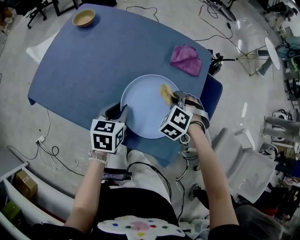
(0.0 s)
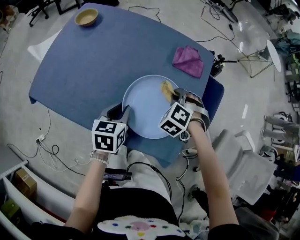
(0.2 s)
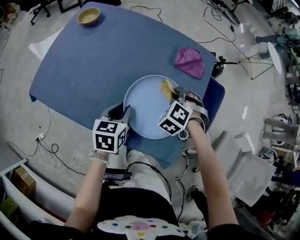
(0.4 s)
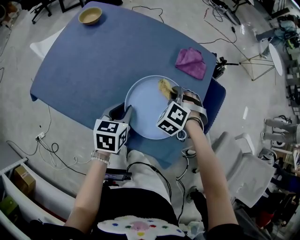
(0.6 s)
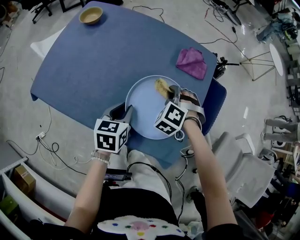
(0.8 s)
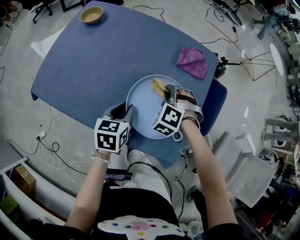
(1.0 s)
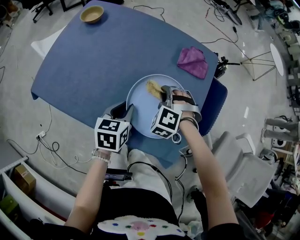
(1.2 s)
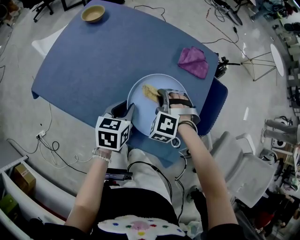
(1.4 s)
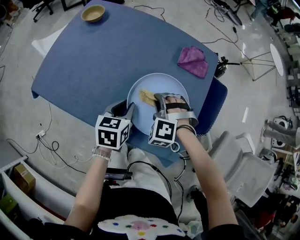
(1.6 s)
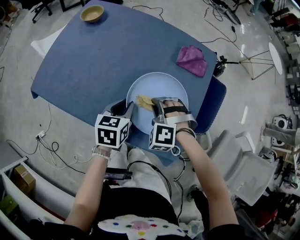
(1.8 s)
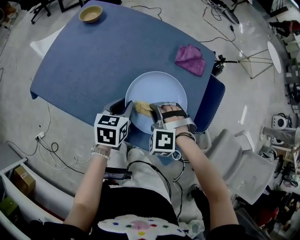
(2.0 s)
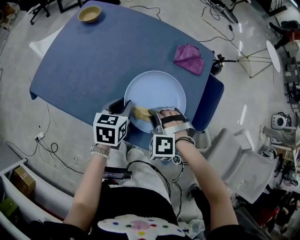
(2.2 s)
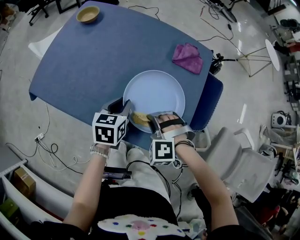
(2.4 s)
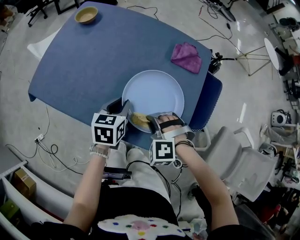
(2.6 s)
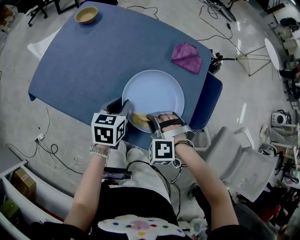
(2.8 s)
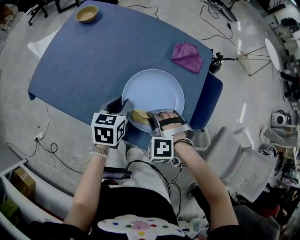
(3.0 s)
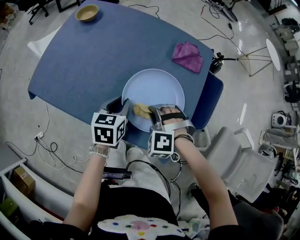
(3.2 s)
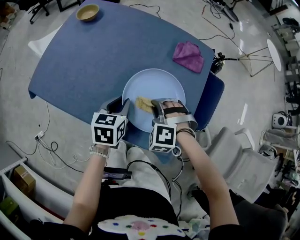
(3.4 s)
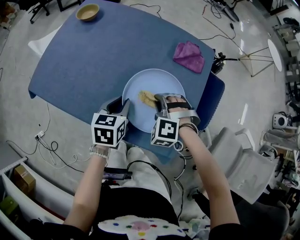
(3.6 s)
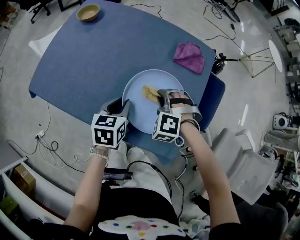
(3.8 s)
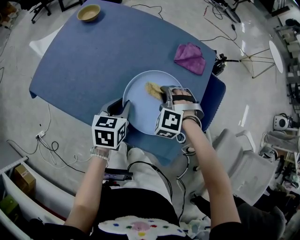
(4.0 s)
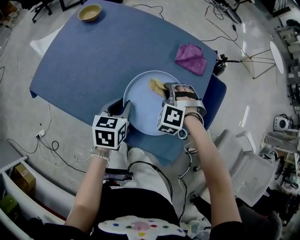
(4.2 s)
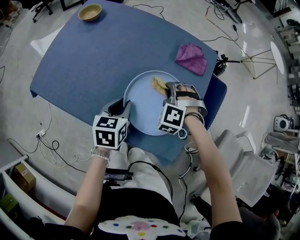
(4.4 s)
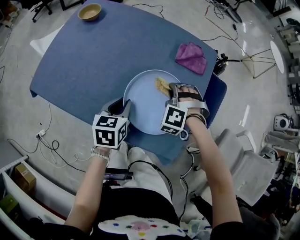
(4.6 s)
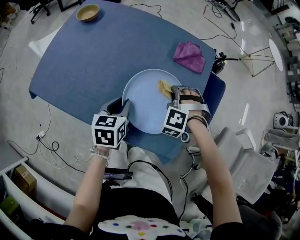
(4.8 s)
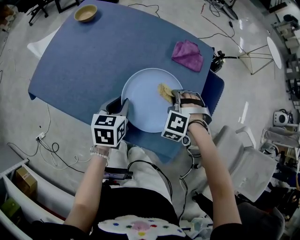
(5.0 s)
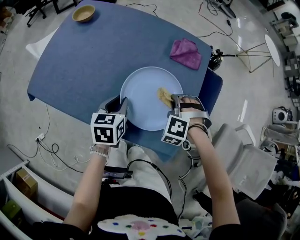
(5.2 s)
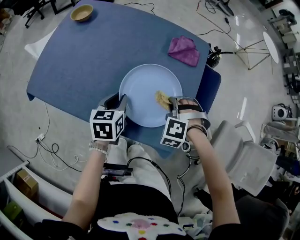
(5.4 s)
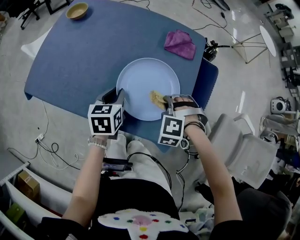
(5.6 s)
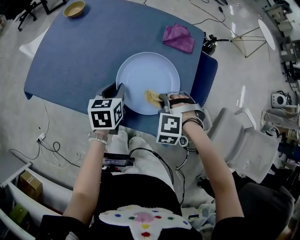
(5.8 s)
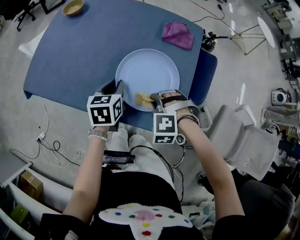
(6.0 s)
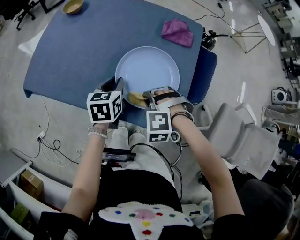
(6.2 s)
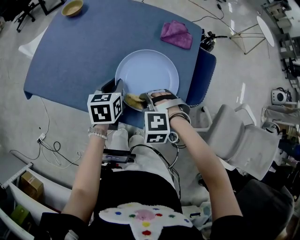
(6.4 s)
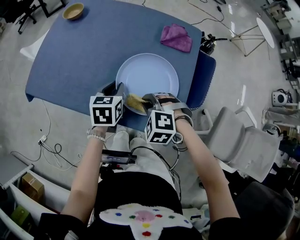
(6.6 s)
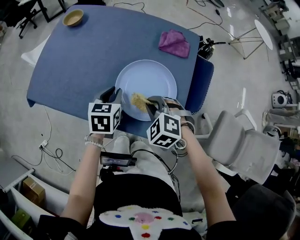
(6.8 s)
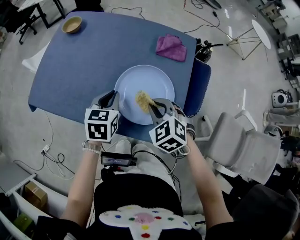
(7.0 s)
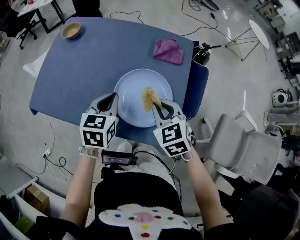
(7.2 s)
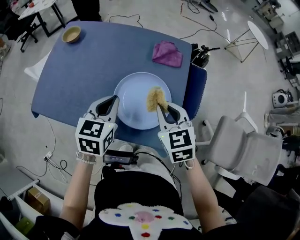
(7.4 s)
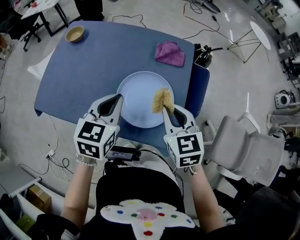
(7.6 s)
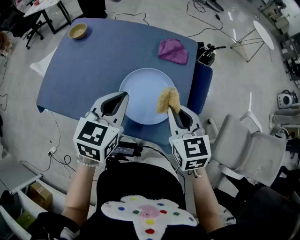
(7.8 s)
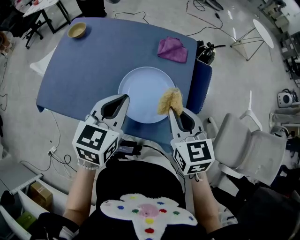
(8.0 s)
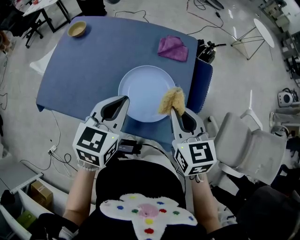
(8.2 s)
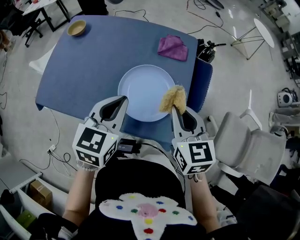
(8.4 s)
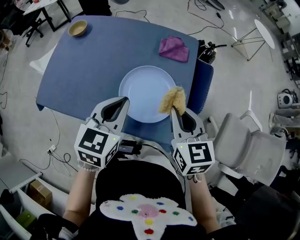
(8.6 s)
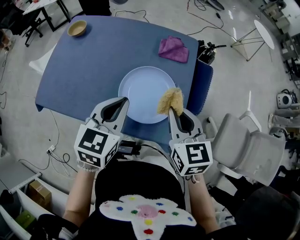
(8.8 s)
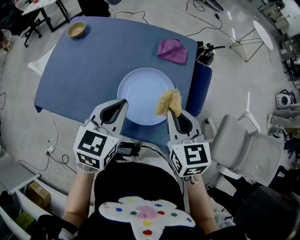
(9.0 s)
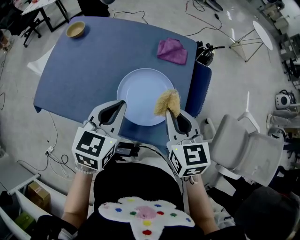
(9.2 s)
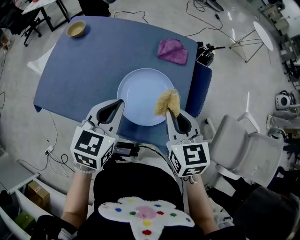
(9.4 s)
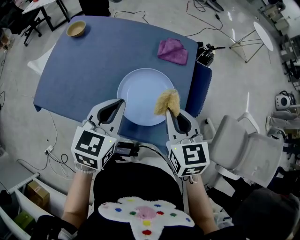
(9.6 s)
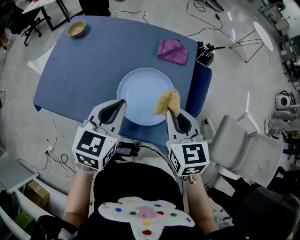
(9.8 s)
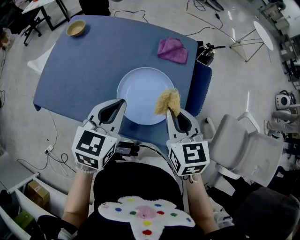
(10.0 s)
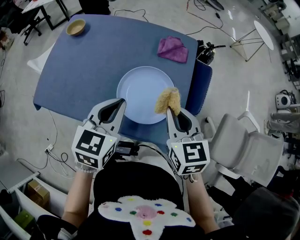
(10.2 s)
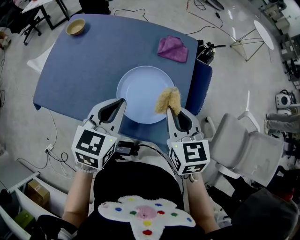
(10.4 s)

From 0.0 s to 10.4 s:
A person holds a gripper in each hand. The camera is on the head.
From 0.0 s to 1.4 s: The right gripper goes some 10 cm to the left.
From 1.4 s to 3.0 s: The right gripper travels backward by some 10 cm.
From 3.0 s to 4.4 s: The right gripper moves forward, roughly 15 cm.
From 4.4 s to 6.0 s: The right gripper goes roughly 15 cm backward.
From 6.0 s to 7.4 s: Both grippers move upward, approximately 15 cm. The left gripper rotates roughly 20 degrees; the right gripper rolls clockwise, seen from behind, by roughly 70 degrees.
From 7.4 s to 9.0 s: The right gripper moves about 5 cm. The left gripper moves approximately 5 cm.
From 9.0 s to 10.4 s: Both grippers stay about where they are.

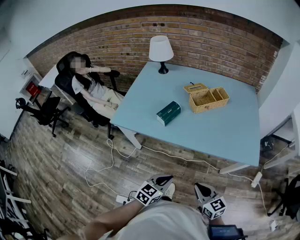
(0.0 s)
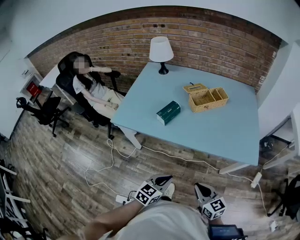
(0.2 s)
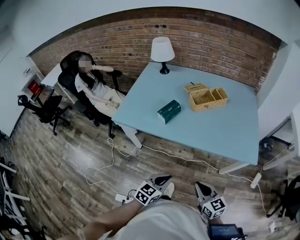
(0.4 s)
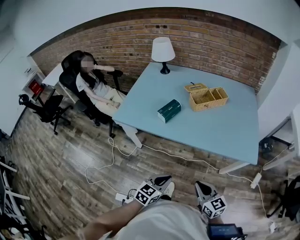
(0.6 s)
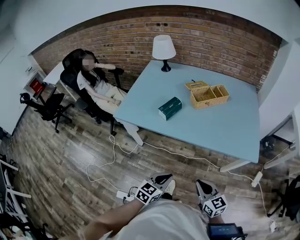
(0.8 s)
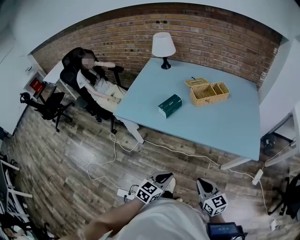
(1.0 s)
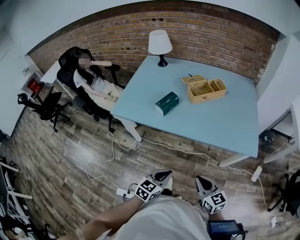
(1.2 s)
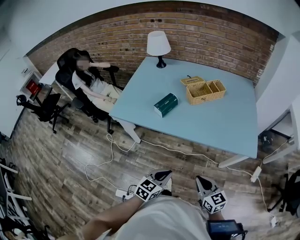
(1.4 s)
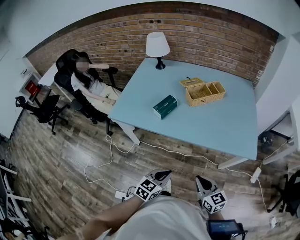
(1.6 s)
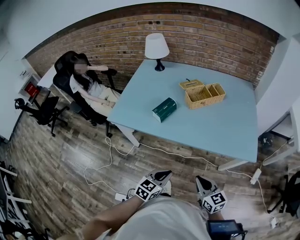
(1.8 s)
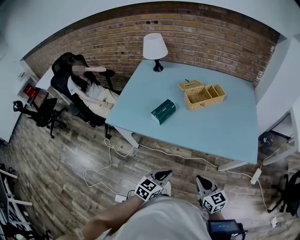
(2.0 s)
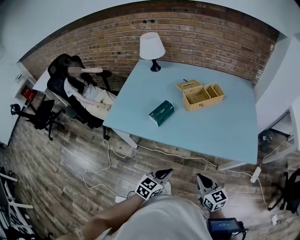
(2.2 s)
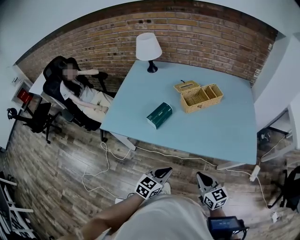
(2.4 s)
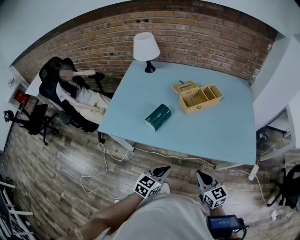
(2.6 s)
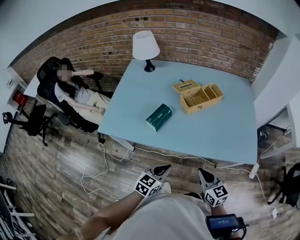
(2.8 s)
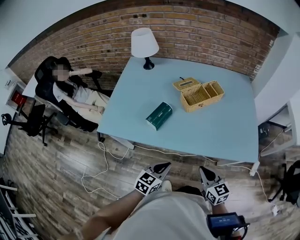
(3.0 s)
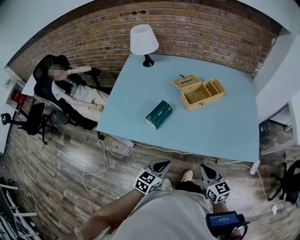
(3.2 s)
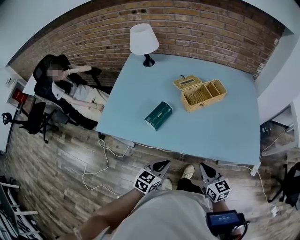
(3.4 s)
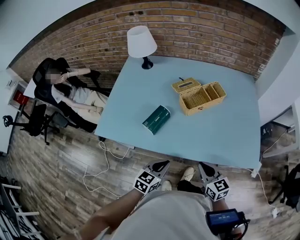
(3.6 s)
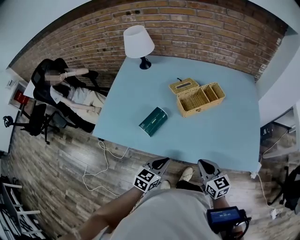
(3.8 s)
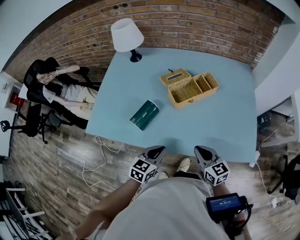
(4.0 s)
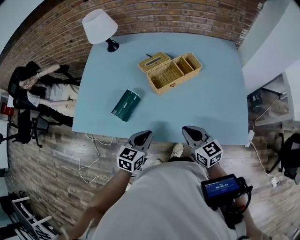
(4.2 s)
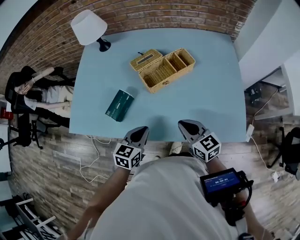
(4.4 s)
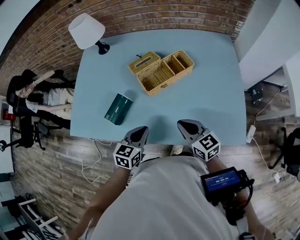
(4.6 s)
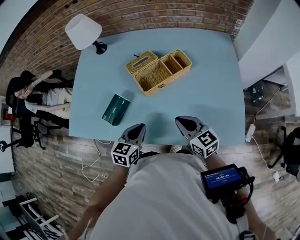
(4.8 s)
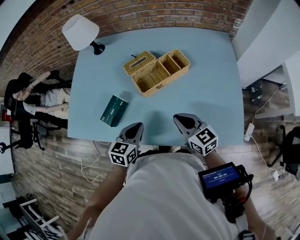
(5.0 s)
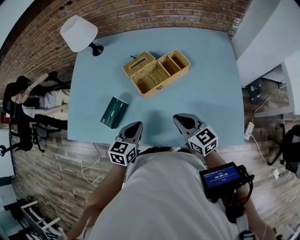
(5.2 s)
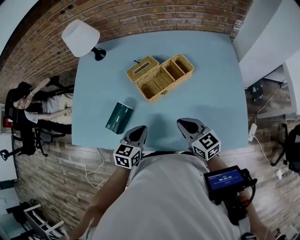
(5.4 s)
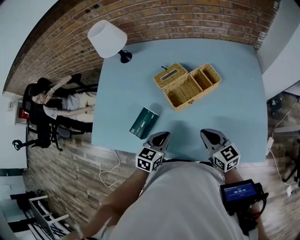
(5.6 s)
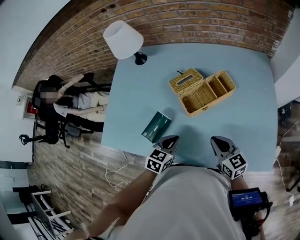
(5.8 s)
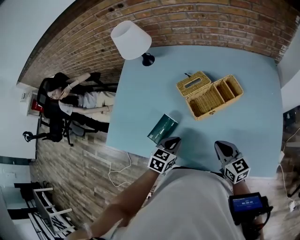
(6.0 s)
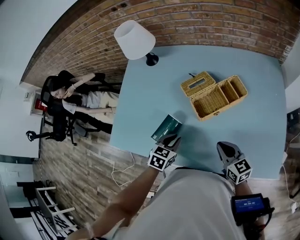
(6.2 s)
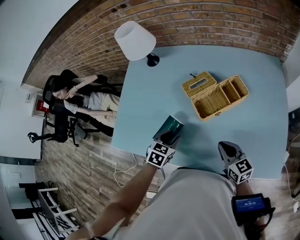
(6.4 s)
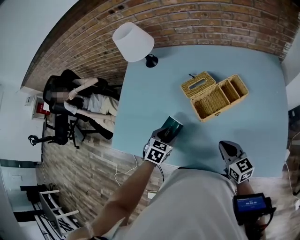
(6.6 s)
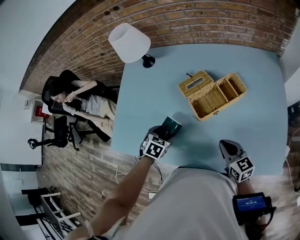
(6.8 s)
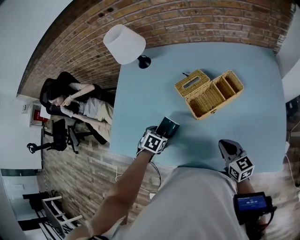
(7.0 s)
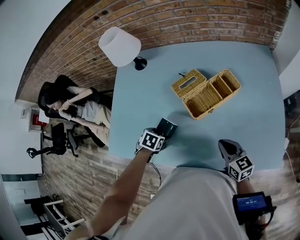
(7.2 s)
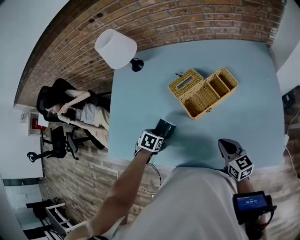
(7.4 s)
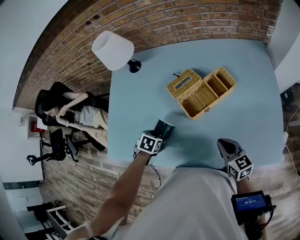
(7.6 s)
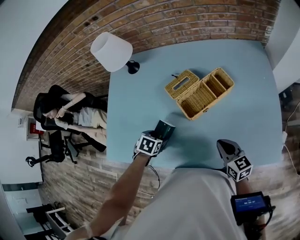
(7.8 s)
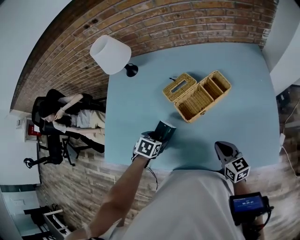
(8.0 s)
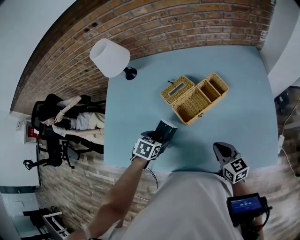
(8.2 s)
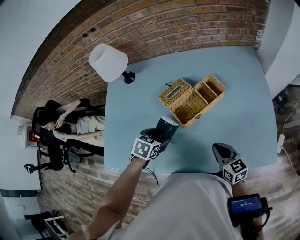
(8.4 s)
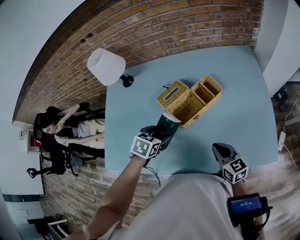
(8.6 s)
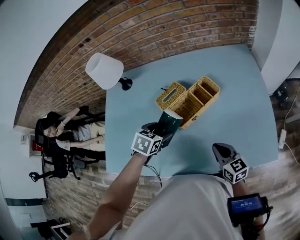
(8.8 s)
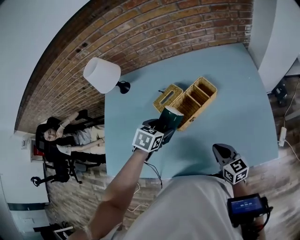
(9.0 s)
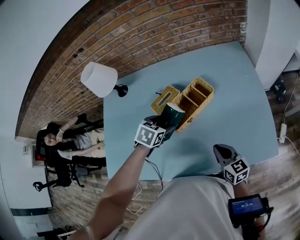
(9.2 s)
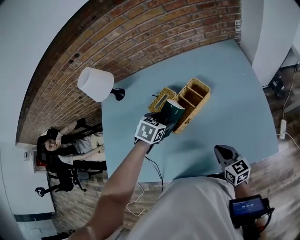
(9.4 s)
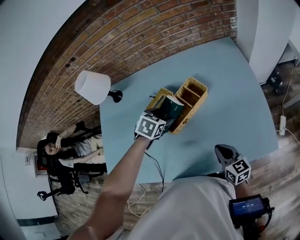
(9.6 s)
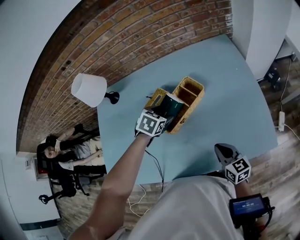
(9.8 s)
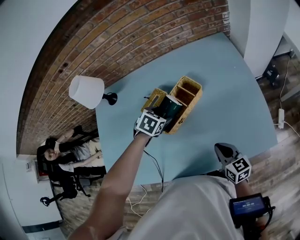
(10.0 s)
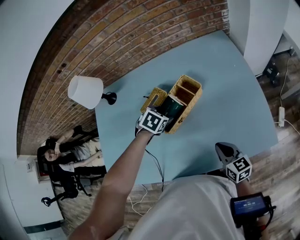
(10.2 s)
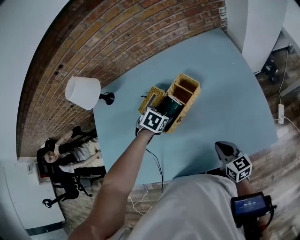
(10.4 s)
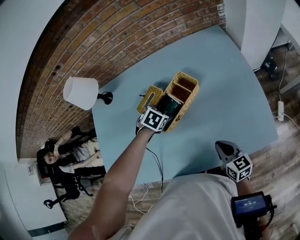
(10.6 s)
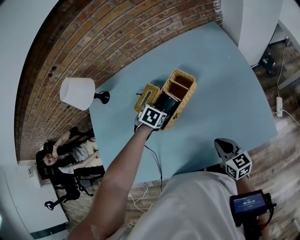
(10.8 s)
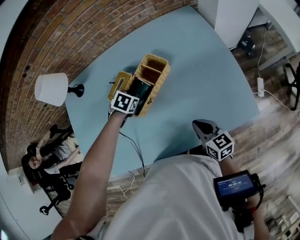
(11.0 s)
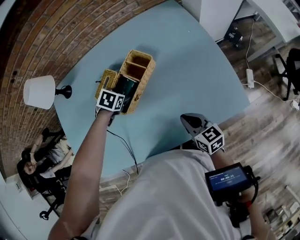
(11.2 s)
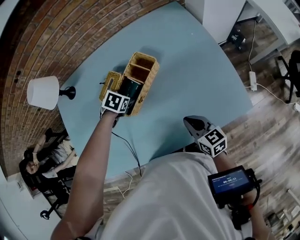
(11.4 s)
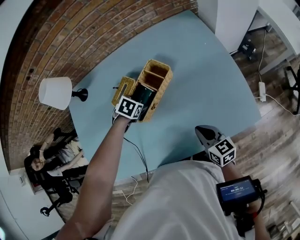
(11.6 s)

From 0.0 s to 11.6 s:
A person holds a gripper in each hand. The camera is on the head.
From 0.0 s to 1.4 s: The grippers move only a little.
From 1.4 s to 2.8 s: The grippers both shift forward by about 15 cm.
From 2.8 s to 4.4 s: The two grippers go about 15 cm forward.
From 4.4 s to 5.8 s: Both grippers travel together forward, some 10 cm.
From 5.8 s to 7.2 s: The left gripper changes place by approximately 15 cm, angles its fingers downward, by some 40 degrees, and opens its fingers.
From 7.2 s to 8.8 s: The left gripper moves roughly 20 cm, and turns by roughly 20 degrees.
From 8.8 s to 10.2 s: The left gripper heads forward and to the right, covering roughly 15 cm, and turns by approximately 20 degrees; the right gripper moves to the right, about 5 cm.
From 10.2 s to 11.6 s: The left gripper moves downward, about 5 cm.

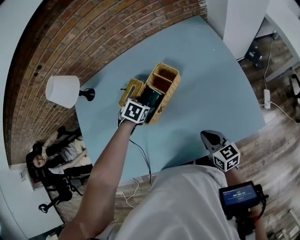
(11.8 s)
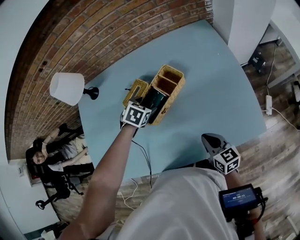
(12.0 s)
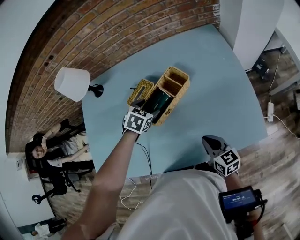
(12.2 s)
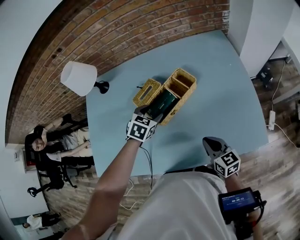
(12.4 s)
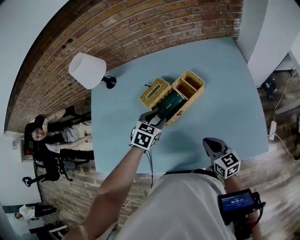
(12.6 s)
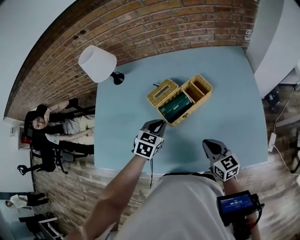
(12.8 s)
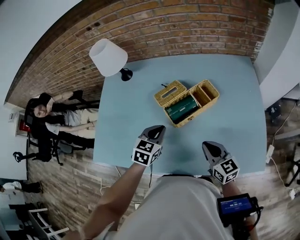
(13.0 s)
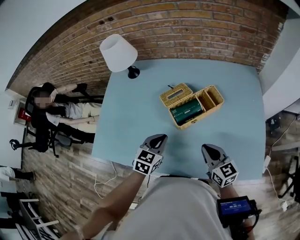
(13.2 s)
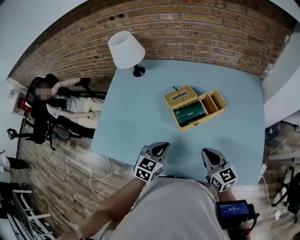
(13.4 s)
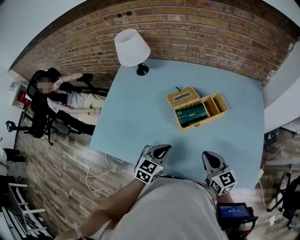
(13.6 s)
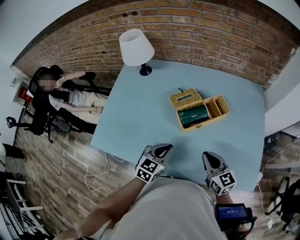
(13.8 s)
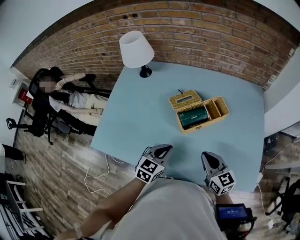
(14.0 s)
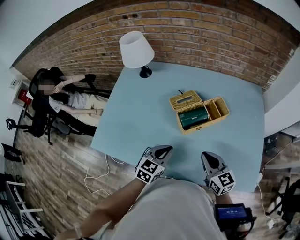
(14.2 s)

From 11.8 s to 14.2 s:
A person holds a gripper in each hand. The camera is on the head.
From 11.8 s to 13.0 s: The right gripper moves to the left and upward, roughly 10 cm, and rotates some 20 degrees, while the left gripper goes approximately 15 cm backward, upward and to the left, tilts its fingers some 30 degrees upward, and closes.
From 13.0 s to 14.2 s: The left gripper moves backward, some 10 cm.
